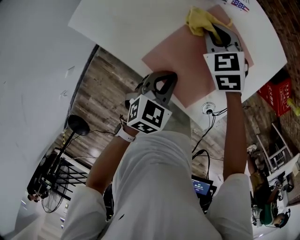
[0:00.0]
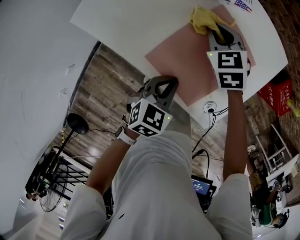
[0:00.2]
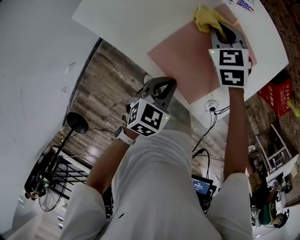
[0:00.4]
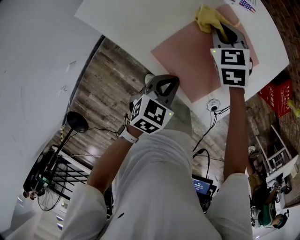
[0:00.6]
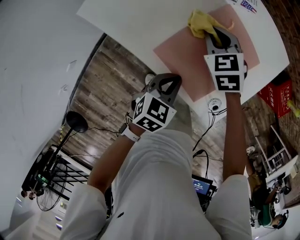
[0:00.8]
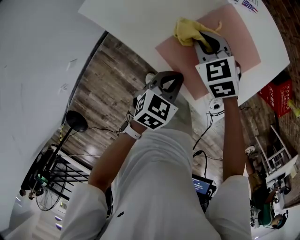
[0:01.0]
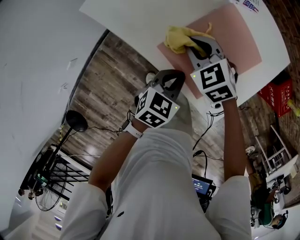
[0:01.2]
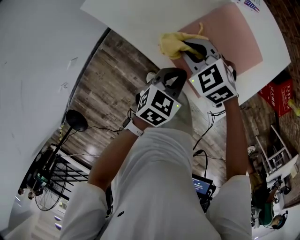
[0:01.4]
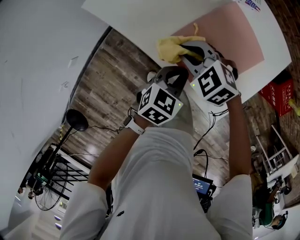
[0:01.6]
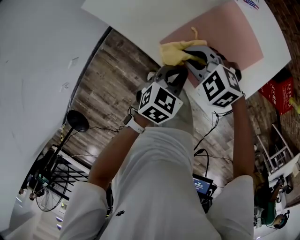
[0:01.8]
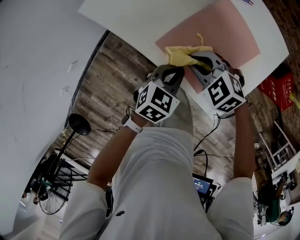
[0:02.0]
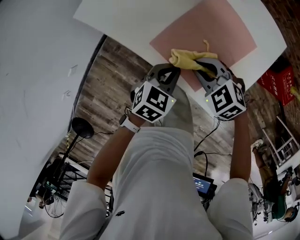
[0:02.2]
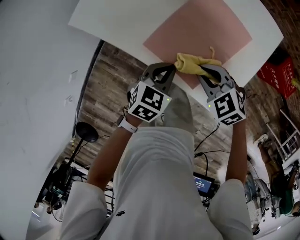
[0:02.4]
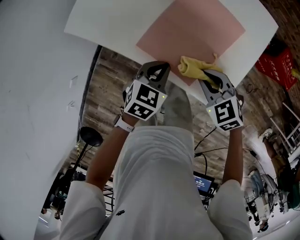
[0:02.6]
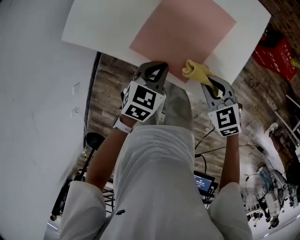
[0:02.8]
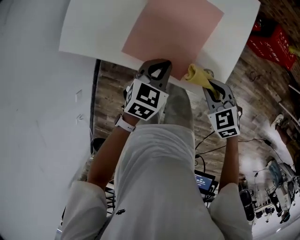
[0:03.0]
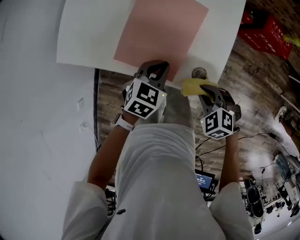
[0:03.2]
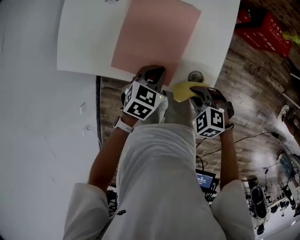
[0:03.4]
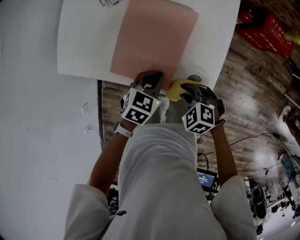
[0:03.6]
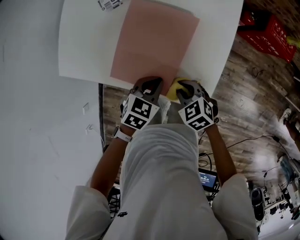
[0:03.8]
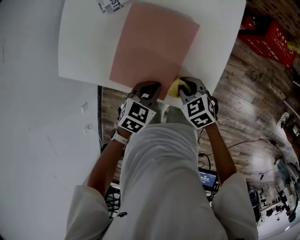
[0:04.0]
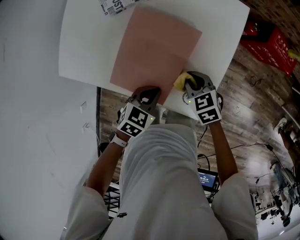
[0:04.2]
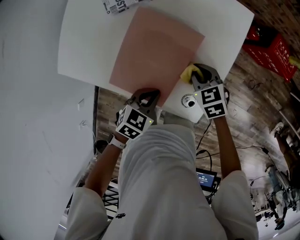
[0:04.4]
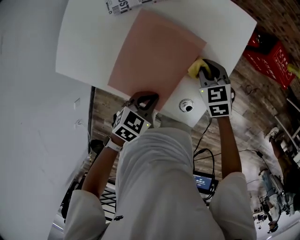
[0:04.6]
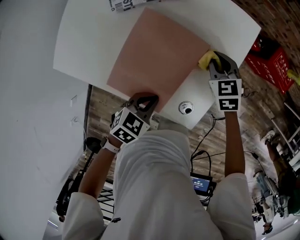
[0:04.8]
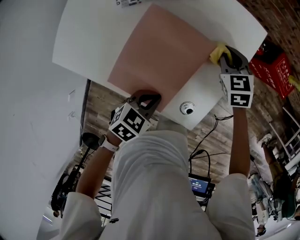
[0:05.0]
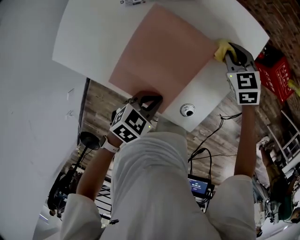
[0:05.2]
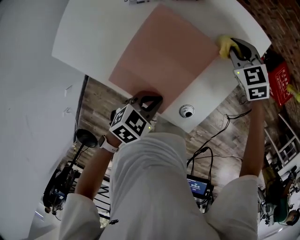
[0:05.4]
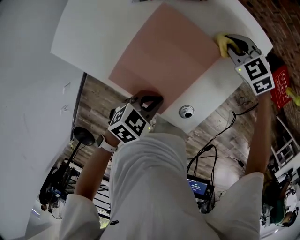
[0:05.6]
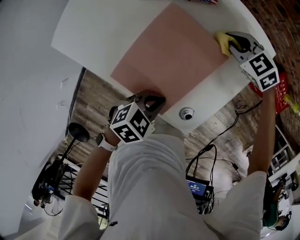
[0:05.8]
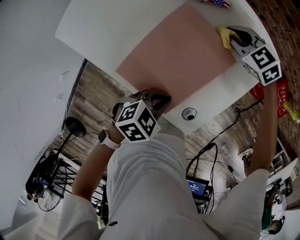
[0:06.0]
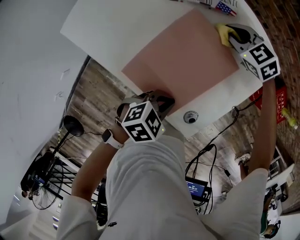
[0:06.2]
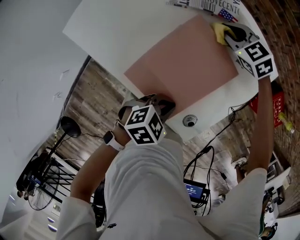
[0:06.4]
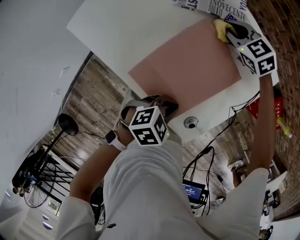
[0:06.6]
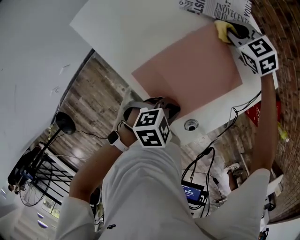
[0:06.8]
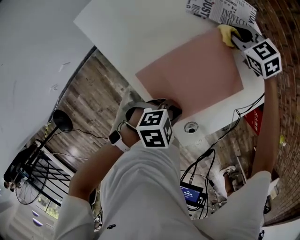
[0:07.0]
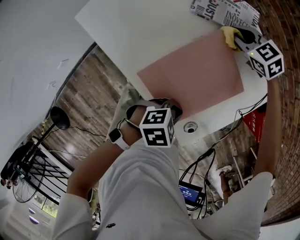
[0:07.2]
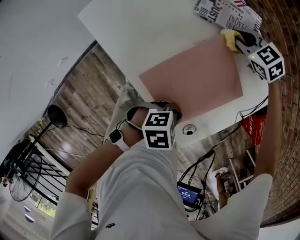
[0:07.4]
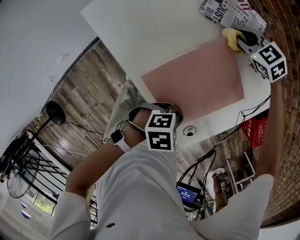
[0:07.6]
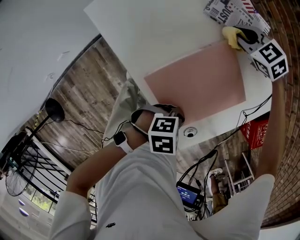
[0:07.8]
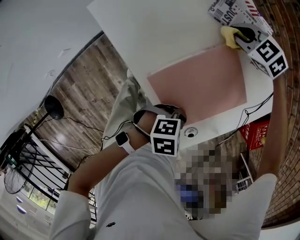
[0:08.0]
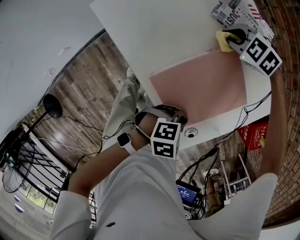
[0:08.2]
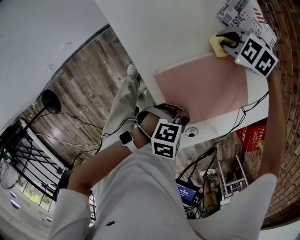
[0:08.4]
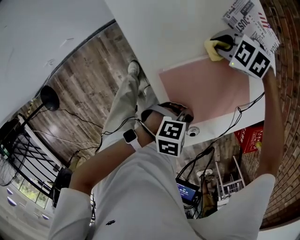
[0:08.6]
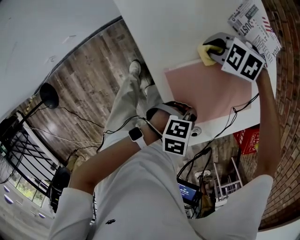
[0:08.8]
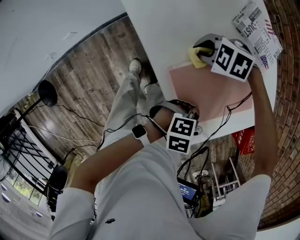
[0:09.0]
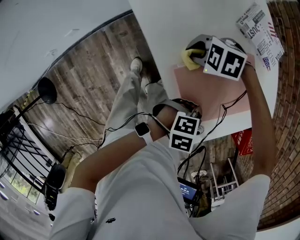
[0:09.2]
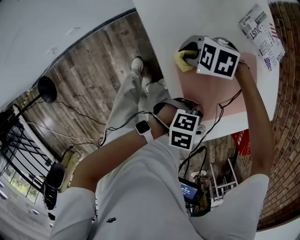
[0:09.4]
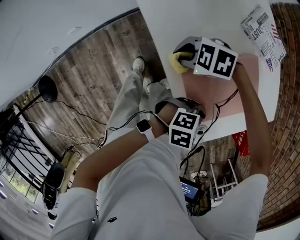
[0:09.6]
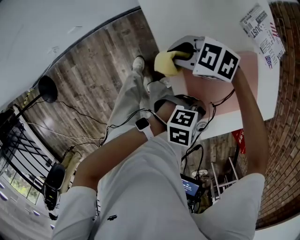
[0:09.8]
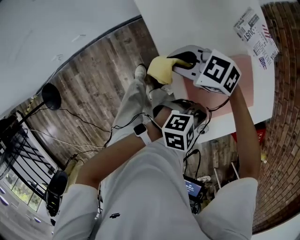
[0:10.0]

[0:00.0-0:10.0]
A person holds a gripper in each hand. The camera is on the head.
0:00.0 to 0:01.4: The right gripper shifts approximately 15 cm backward and to the left, and swivels some 30 degrees.
0:01.4 to 0:02.8: The right gripper heads backward and to the right, covering roughly 20 cm, and rotates about 30 degrees.
0:02.8 to 0:04.2: The right gripper shifts some 10 cm forward and downward. The left gripper moves to the right, some 10 cm.
0:04.2 to 0:05.8: The right gripper changes place by roughly 25 cm, and swivels about 40 degrees.
0:05.8 to 0:07.2: The right gripper changes place by roughly 15 cm.
0:07.2 to 0:08.6: The right gripper moves approximately 15 cm, and rotates about 40 degrees.
0:08.6 to 0:10.0: The left gripper is displaced upward by approximately 5 cm. The right gripper shifts by about 25 cm, and rotates roughly 30 degrees.

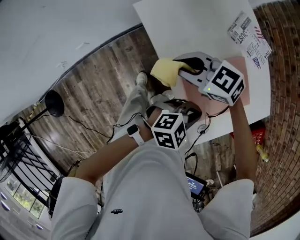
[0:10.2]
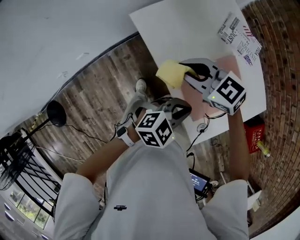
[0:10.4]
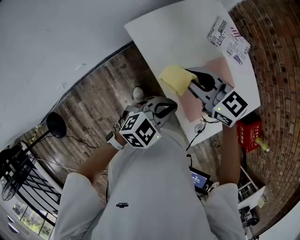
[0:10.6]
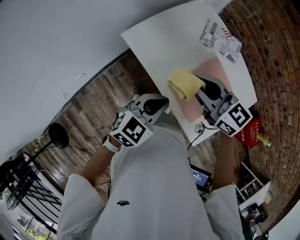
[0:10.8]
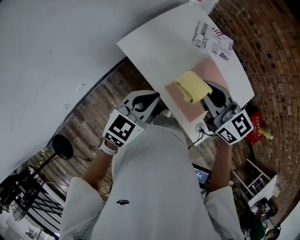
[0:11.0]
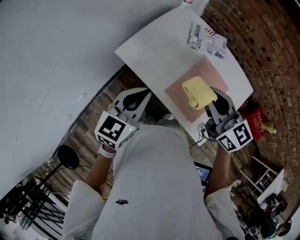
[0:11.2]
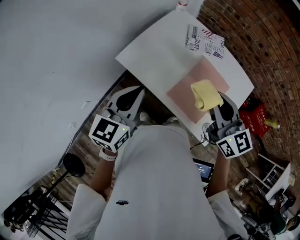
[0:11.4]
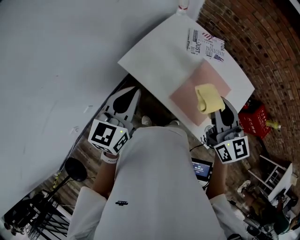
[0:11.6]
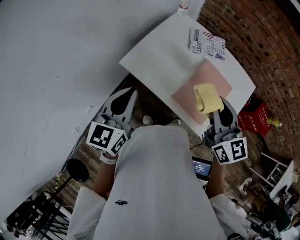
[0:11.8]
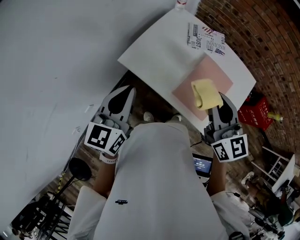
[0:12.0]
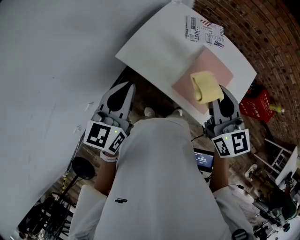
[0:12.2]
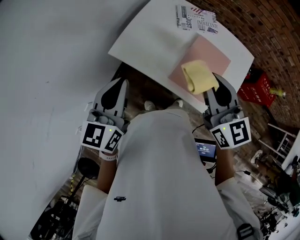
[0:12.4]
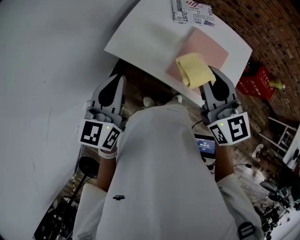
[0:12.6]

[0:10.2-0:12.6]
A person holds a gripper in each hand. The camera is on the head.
0:10.2 to 0:11.4: The right gripper heads upward, covering roughly 20 cm, and rotates about 70 degrees; the left gripper moves roughly 30 cm, and changes its angle by approximately 40 degrees.
0:11.4 to 0:12.6: The left gripper shifts by roughly 5 cm, while the right gripper shifts by approximately 5 cm.

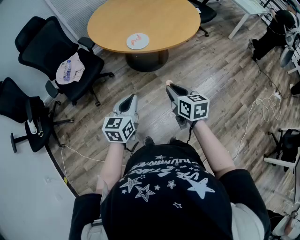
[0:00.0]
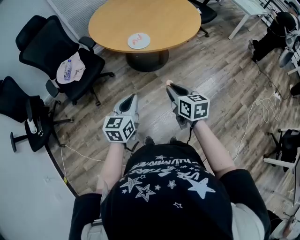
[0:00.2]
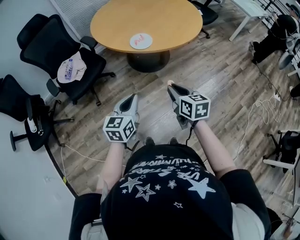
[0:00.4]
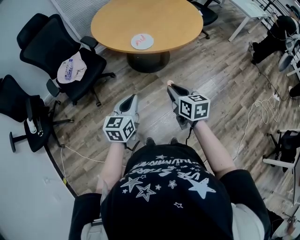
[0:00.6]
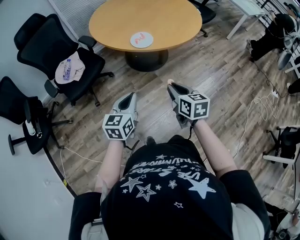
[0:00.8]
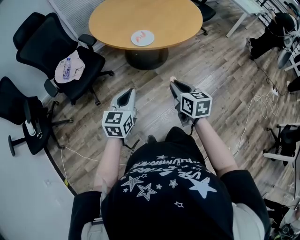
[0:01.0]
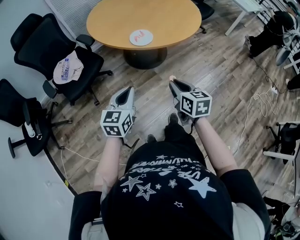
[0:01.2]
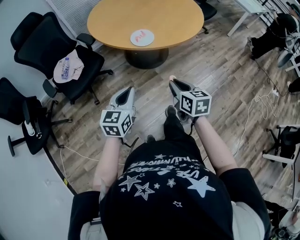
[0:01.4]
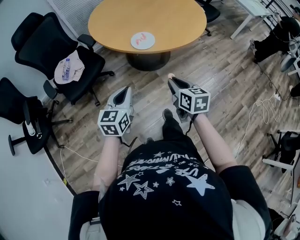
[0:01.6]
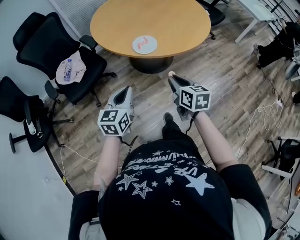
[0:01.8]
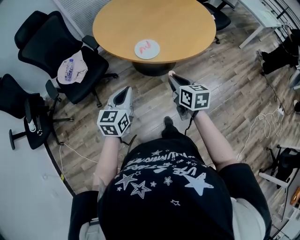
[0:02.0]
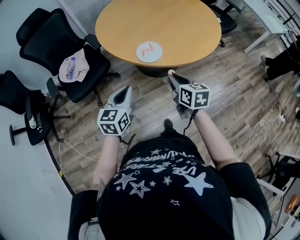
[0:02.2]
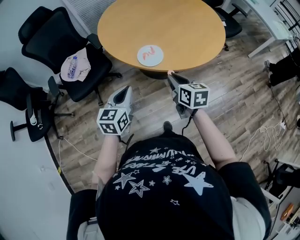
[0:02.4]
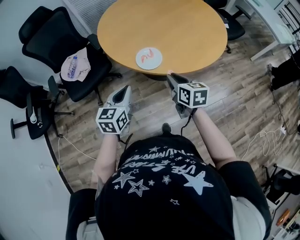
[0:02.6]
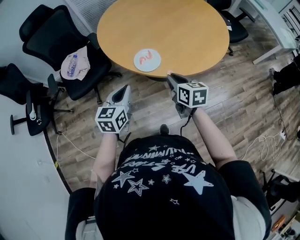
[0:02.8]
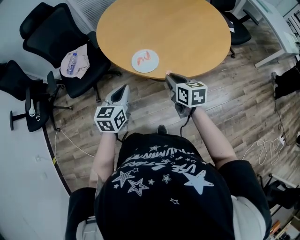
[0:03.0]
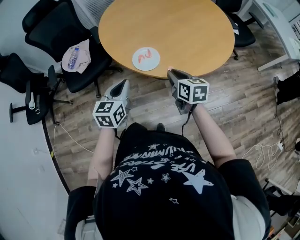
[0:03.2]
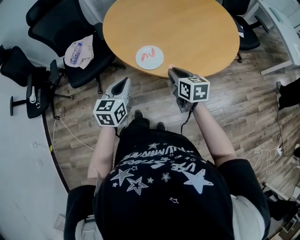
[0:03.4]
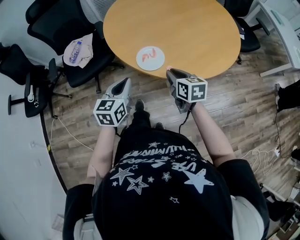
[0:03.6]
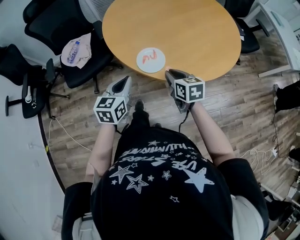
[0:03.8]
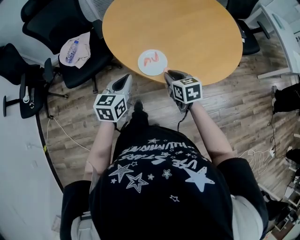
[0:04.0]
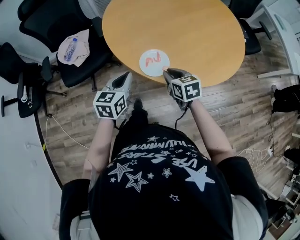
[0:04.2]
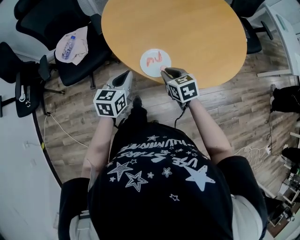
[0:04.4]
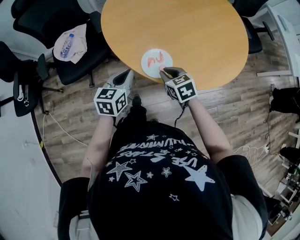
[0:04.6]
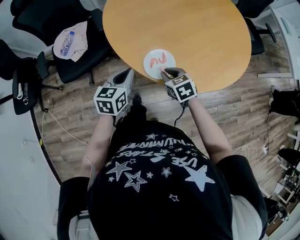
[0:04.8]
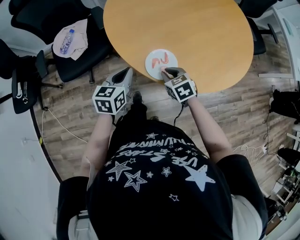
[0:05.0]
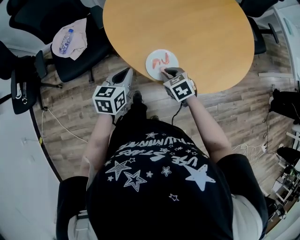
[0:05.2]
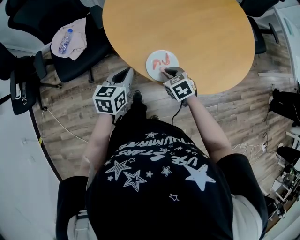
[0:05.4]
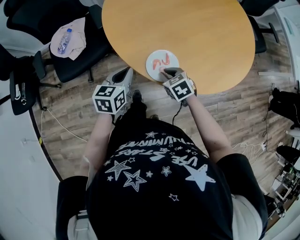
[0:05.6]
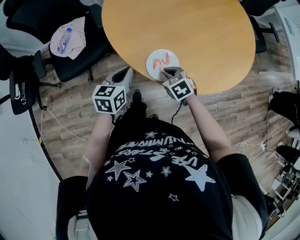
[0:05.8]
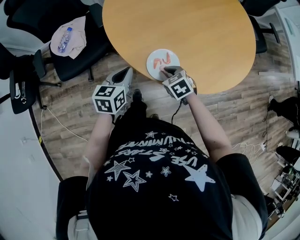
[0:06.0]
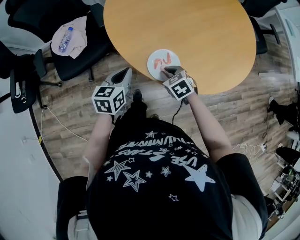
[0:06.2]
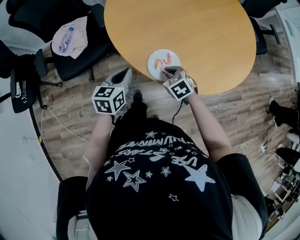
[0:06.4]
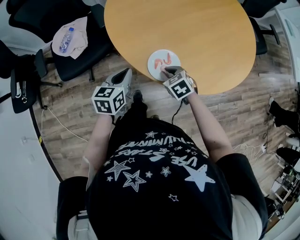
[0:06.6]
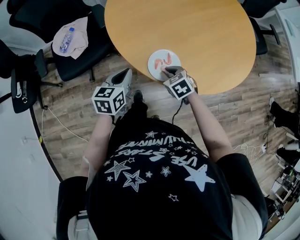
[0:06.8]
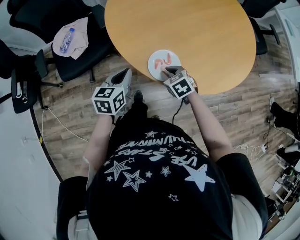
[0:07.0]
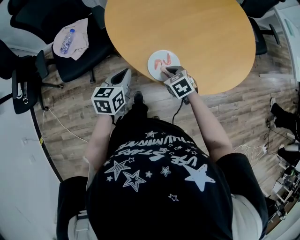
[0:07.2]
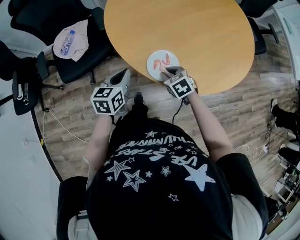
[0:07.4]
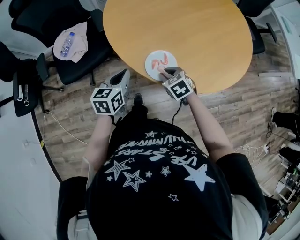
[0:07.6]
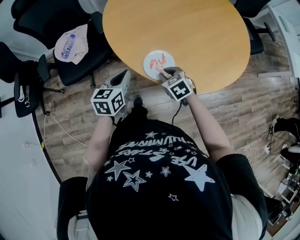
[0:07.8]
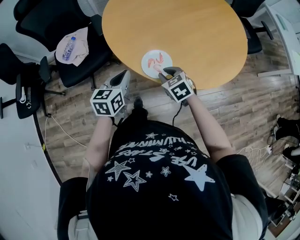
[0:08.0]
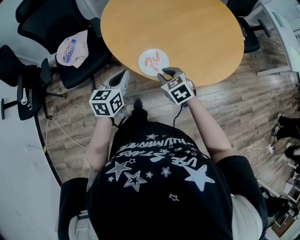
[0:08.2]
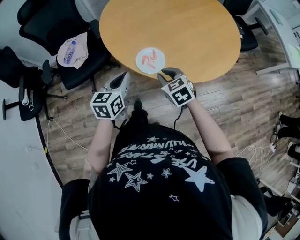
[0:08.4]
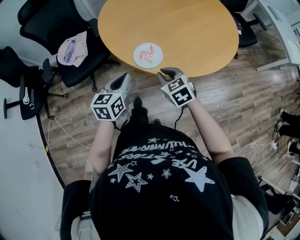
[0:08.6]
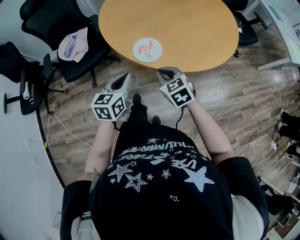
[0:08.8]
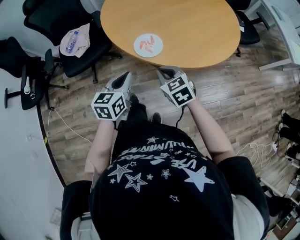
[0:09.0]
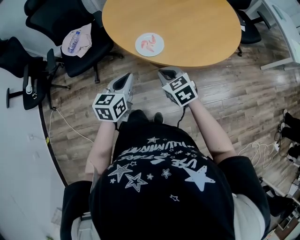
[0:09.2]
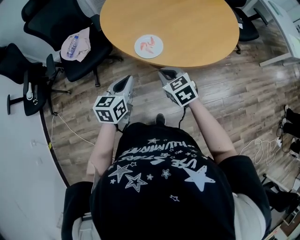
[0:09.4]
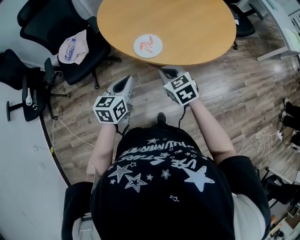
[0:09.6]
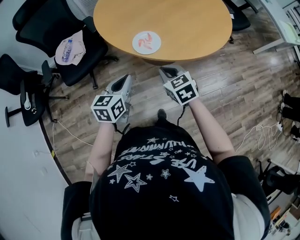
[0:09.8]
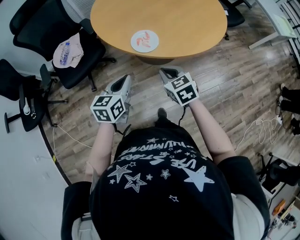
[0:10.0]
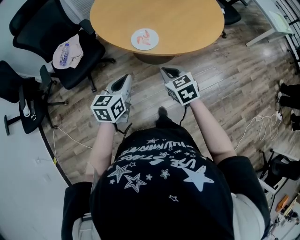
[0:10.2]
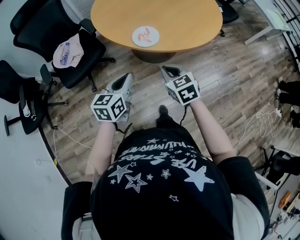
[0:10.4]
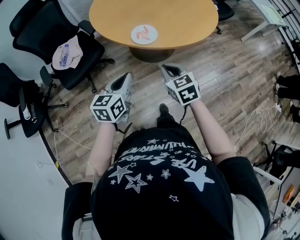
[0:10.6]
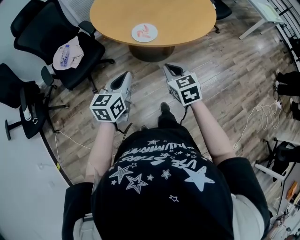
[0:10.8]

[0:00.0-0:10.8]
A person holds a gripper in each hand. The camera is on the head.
0:00.0 to 0:01.6: The right gripper is displaced forward by about 5 cm. Meanwhile the left gripper goes about 10 cm forward and to the left.
0:01.6 to 0:03.0: The right gripper shifts approximately 20 cm forward, while the left gripper shifts approximately 20 cm forward and to the right.
0:03.0 to 0:04.6: The right gripper heads forward, downward and to the left, covering approximately 15 cm, and changes its angle by approximately 30 degrees. Meanwhile the left gripper goes some 15 cm forward and downward.
0:04.6 to 0:06.2: The right gripper travels downward by about 5 cm, while the left gripper changes place by some 5 cm.
0:06.2 to 0:07.8: The grippers move only a little.
0:07.8 to 0:09.2: The left gripper goes roughly 15 cm backward, while the right gripper travels backward and upward by some 15 cm, and closes up.
0:09.2 to 0:10.8: The left gripper heads backward and to the left, covering approximately 10 cm, while the right gripper moves backward and upward, approximately 15 cm, and turns by roughly 30 degrees.
